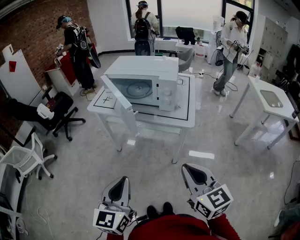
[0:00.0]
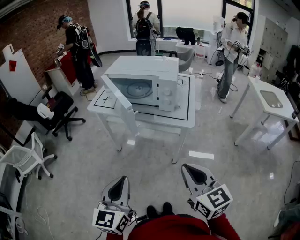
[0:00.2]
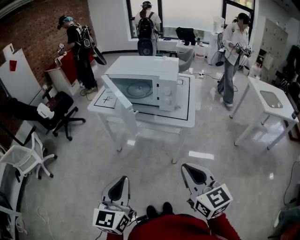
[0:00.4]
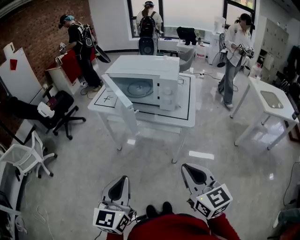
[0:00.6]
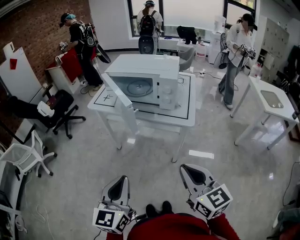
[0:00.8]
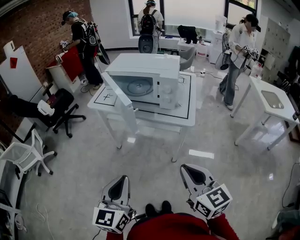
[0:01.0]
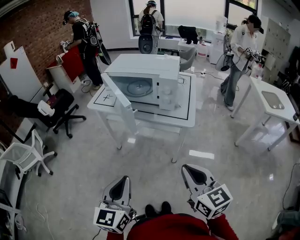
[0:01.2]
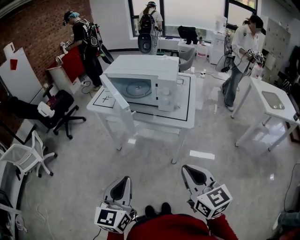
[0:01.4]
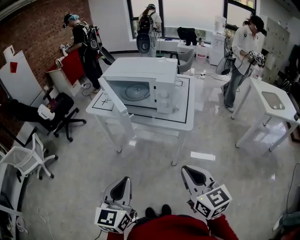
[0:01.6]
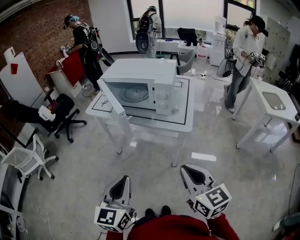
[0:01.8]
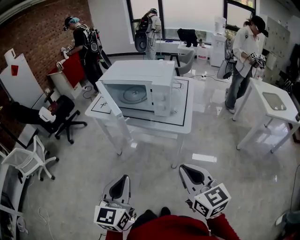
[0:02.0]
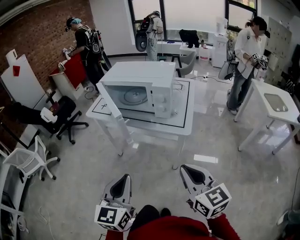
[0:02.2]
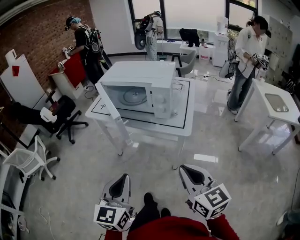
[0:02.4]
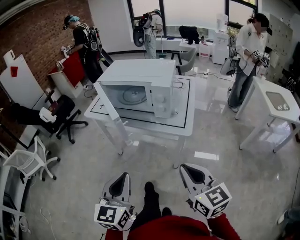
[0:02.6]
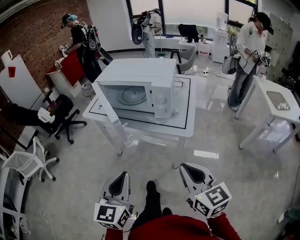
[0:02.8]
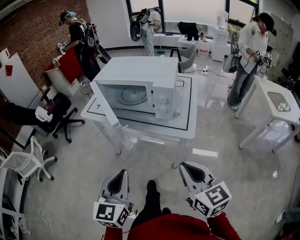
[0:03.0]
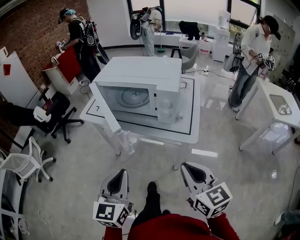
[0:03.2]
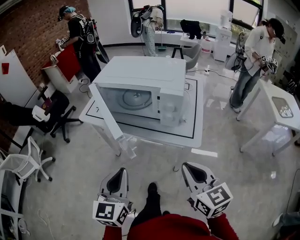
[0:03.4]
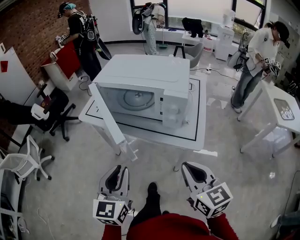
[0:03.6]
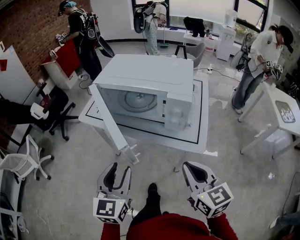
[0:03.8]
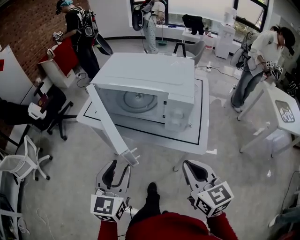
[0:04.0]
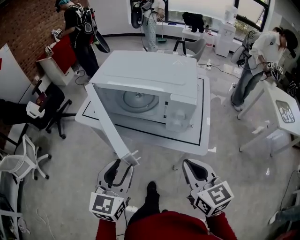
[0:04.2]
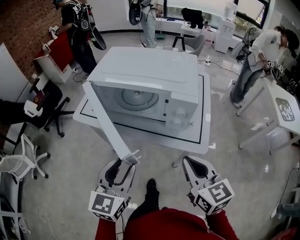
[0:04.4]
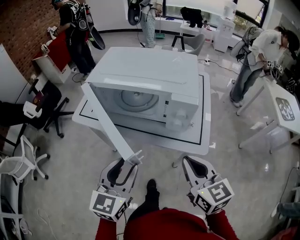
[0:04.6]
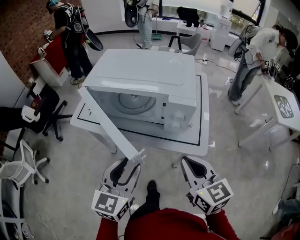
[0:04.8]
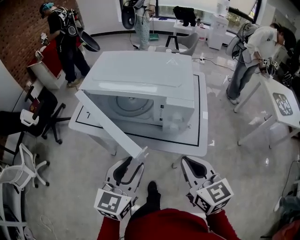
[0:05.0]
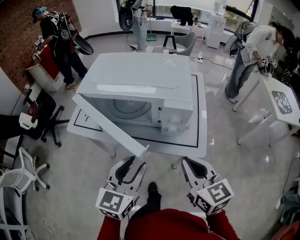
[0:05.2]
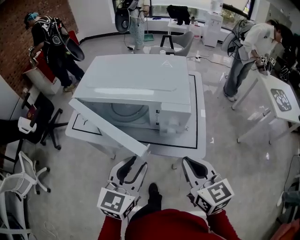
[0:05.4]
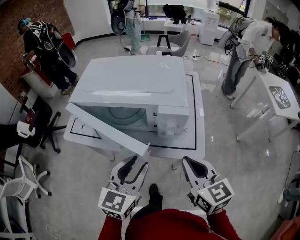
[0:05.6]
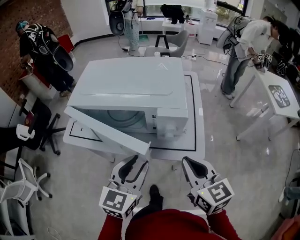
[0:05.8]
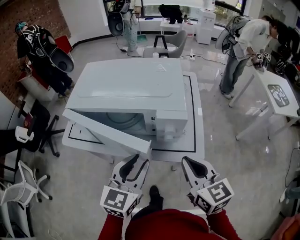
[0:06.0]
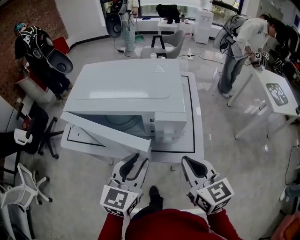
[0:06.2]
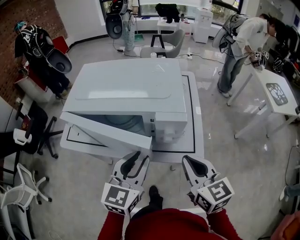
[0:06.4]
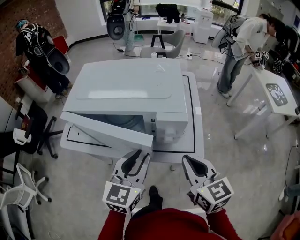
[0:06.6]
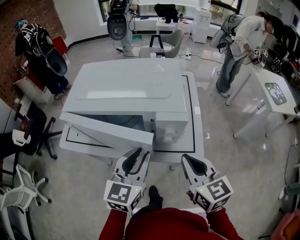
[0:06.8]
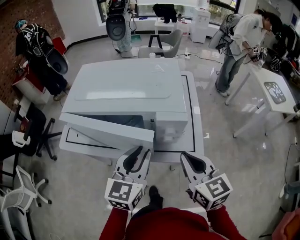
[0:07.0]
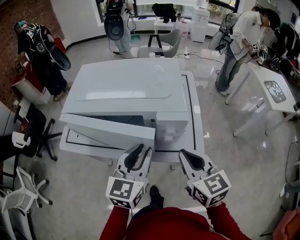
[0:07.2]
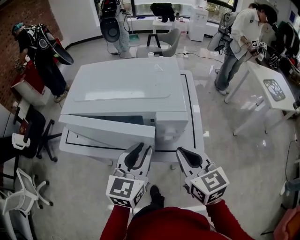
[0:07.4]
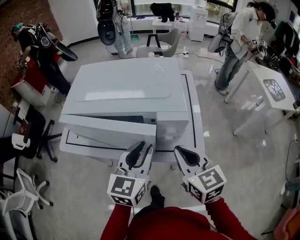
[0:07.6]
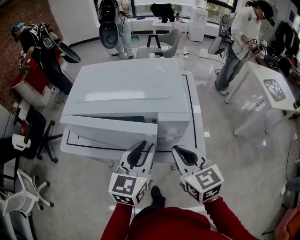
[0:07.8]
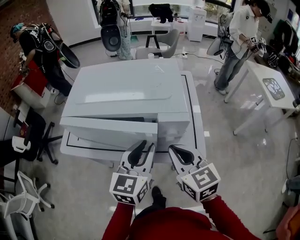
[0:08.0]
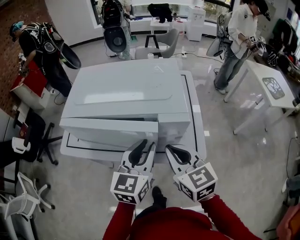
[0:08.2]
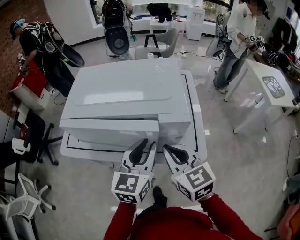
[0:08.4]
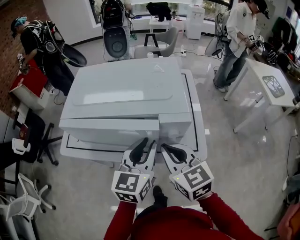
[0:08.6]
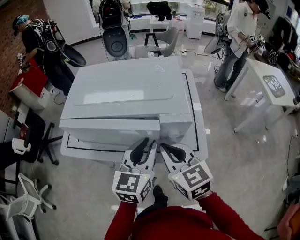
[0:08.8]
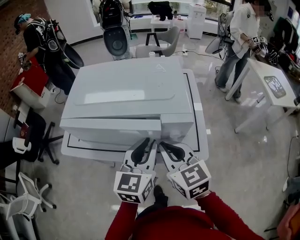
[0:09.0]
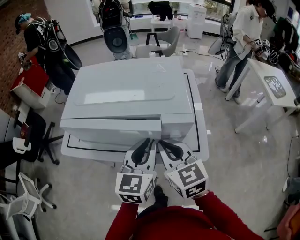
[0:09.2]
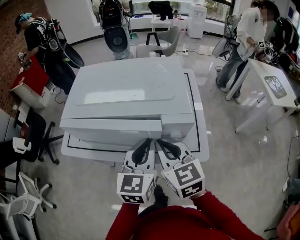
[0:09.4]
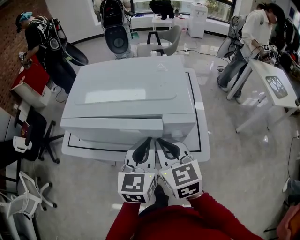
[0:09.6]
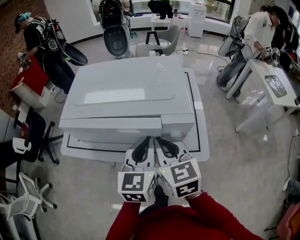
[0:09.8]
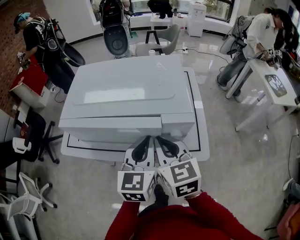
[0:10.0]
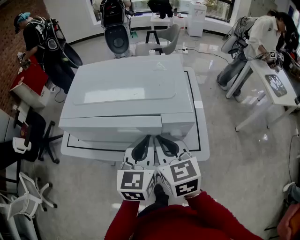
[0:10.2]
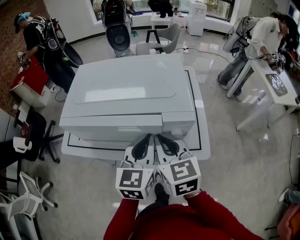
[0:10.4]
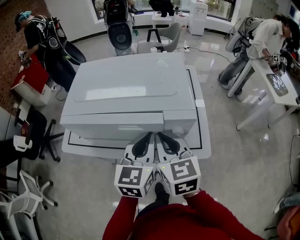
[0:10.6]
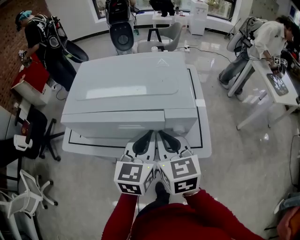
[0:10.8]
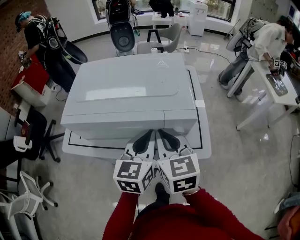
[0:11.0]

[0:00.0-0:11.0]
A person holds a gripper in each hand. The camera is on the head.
0.0 to 1.6 s: The grippers move only a little.
1.6 to 3.2 s: Both grippers travel together forward, roughly 10 cm.
3.2 to 4.8 s: The grippers both shift forward by about 10 cm. The left gripper opens its fingers.
4.8 to 6.2 s: The right gripper moves roughly 5 cm. Meanwhile the left gripper heads forward and to the right, covering some 10 cm.
6.2 to 7.8 s: The right gripper moves roughly 5 cm.
7.8 to 9.4 s: The right gripper is displaced to the left by approximately 5 cm.
9.4 to 11.0 s: The grippers stay close to where they were, moving slightly.

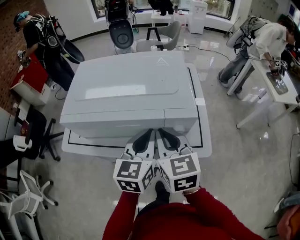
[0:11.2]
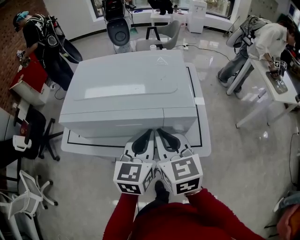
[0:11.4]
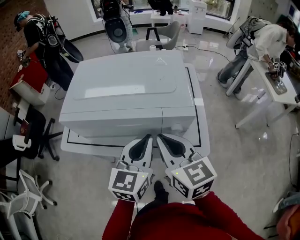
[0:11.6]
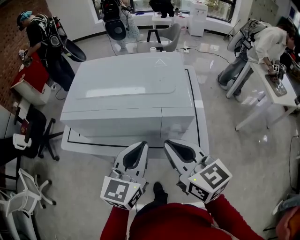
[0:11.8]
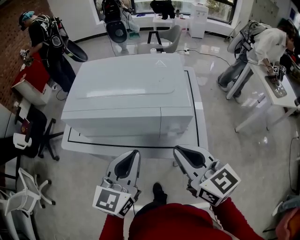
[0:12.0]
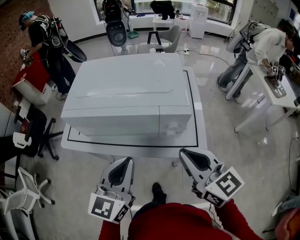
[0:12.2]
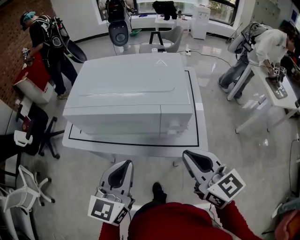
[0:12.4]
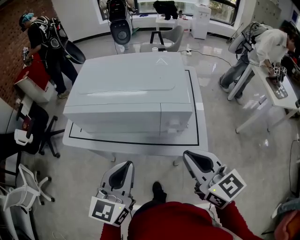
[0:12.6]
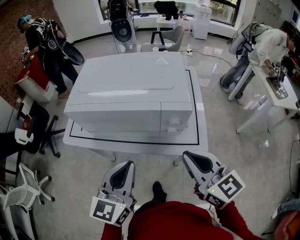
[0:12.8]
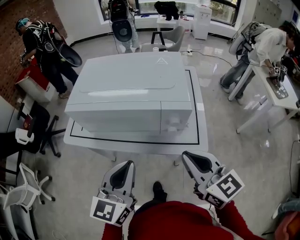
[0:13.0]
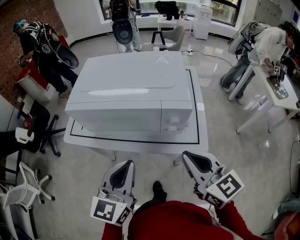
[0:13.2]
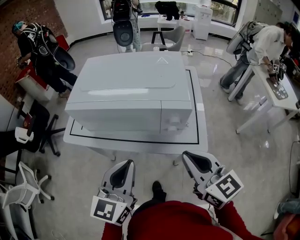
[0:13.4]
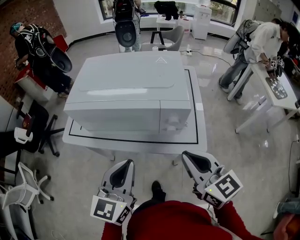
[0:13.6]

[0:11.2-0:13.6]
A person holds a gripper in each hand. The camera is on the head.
11.2 to 12.4 s: The right gripper goes roughly 10 cm backward and to the right, and changes its angle by some 20 degrees. Meanwhile the left gripper is displaced backward and to the left by some 15 cm.
12.4 to 13.6 s: The grippers make only small movements.

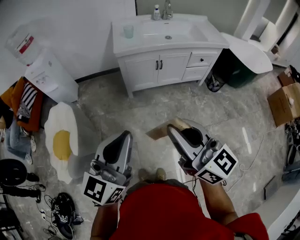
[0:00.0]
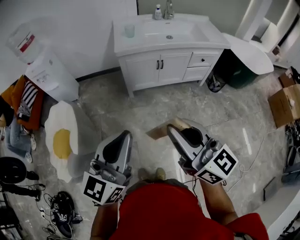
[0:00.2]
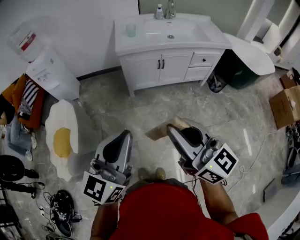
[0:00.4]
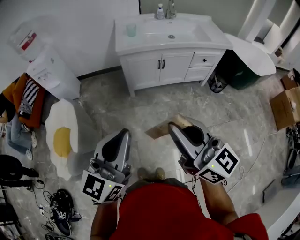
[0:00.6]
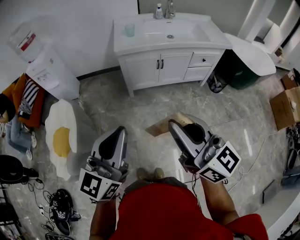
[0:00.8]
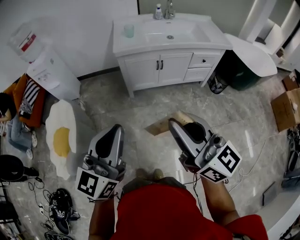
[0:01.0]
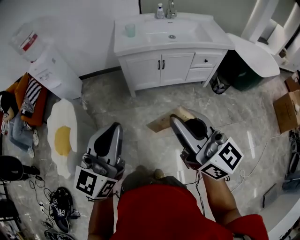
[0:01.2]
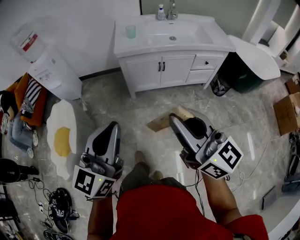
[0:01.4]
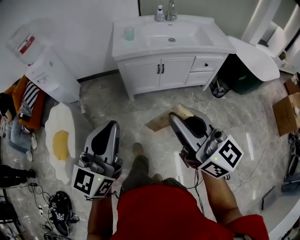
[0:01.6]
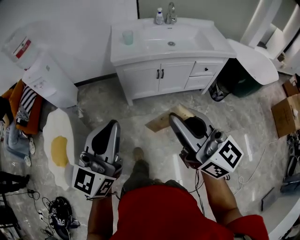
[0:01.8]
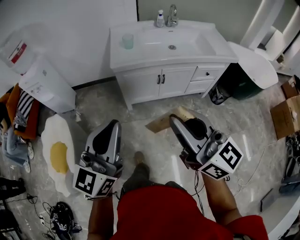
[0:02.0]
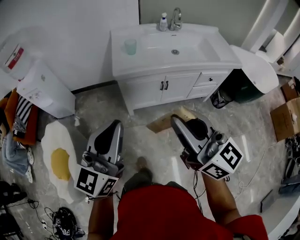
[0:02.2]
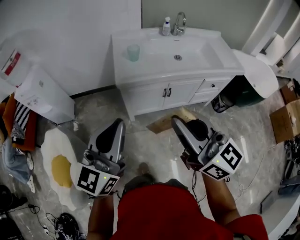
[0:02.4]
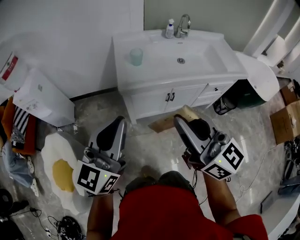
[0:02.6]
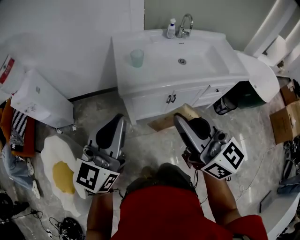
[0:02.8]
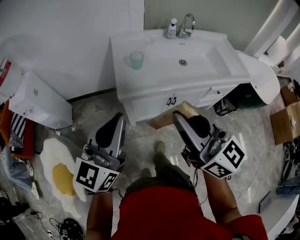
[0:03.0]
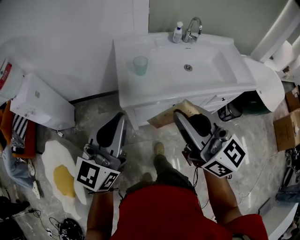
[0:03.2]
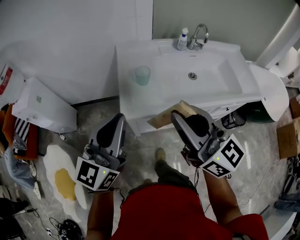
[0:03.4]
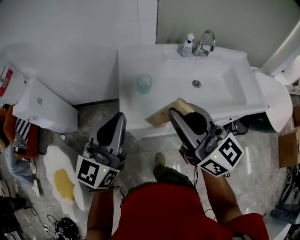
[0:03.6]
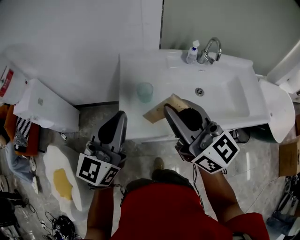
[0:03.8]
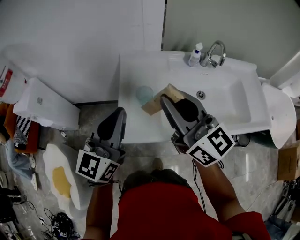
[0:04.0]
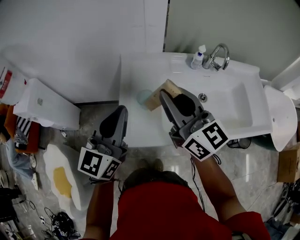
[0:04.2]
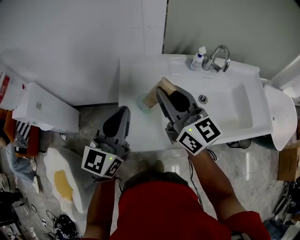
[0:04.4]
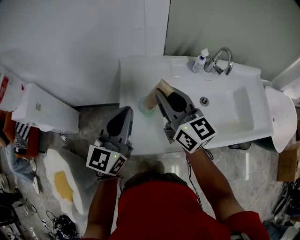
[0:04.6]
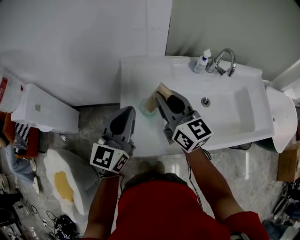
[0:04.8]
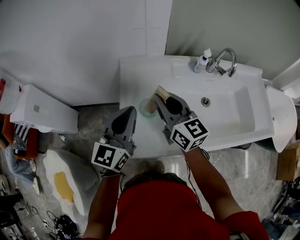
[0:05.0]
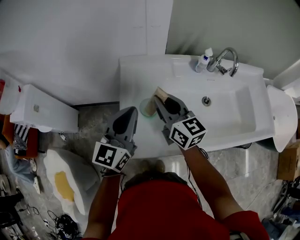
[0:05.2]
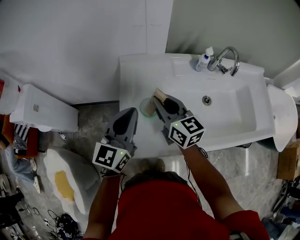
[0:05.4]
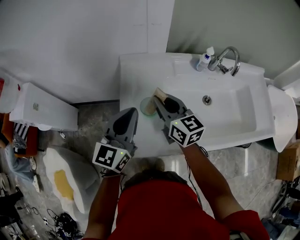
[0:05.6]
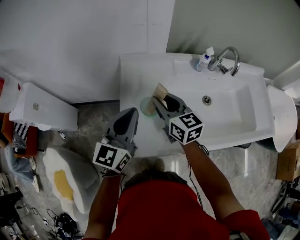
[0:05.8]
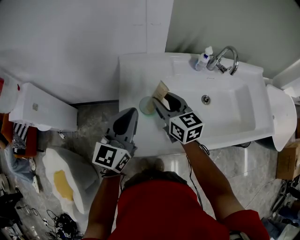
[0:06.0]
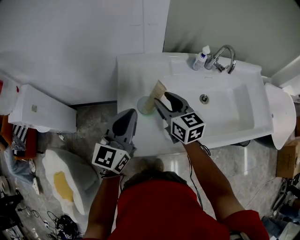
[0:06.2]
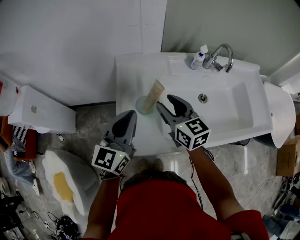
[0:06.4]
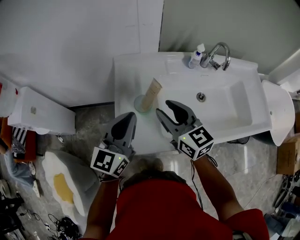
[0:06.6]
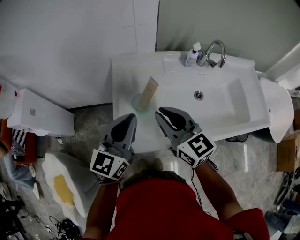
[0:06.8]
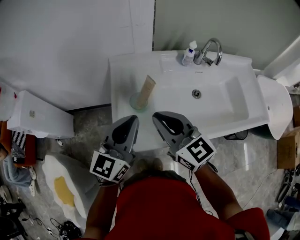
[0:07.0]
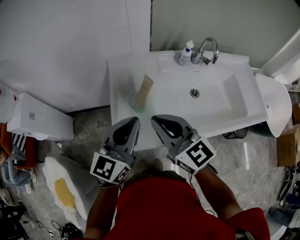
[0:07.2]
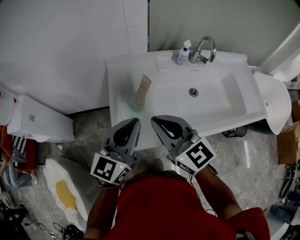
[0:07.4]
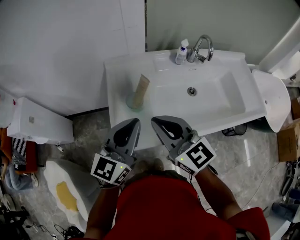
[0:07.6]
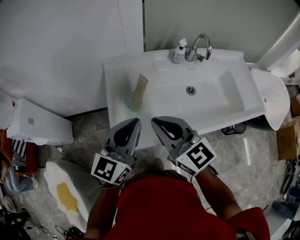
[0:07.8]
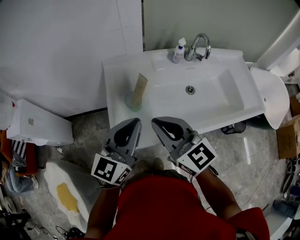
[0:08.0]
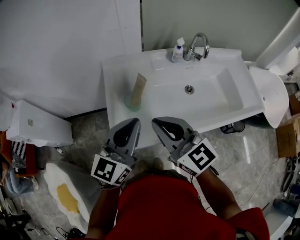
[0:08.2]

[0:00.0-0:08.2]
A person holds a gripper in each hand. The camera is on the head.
0.0 to 1.6 s: The left gripper is displaced forward by about 10 cm. Meanwhile the right gripper moves forward and to the right, approximately 10 cm.
1.6 to 3.2 s: The pair of grippers is taken forward, roughly 40 cm.
3.2 to 5.0 s: The two grippers go roughly 35 cm forward.
5.0 to 6.6 s: The right gripper goes roughly 5 cm backward, and opens.
6.6 to 8.2 s: The right gripper is displaced backward and upward by approximately 10 cm, and closes; the left gripper is displaced backward by about 5 cm.

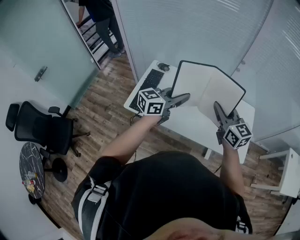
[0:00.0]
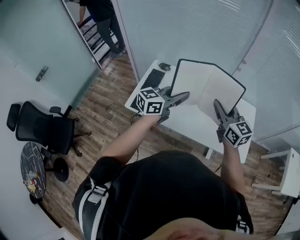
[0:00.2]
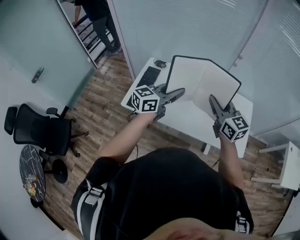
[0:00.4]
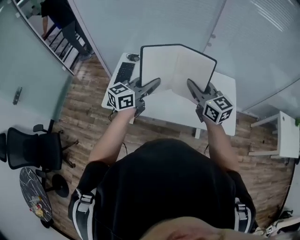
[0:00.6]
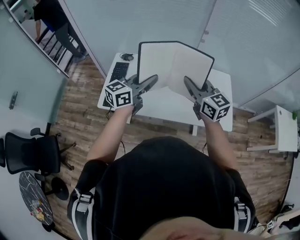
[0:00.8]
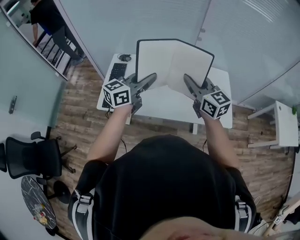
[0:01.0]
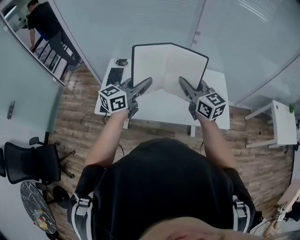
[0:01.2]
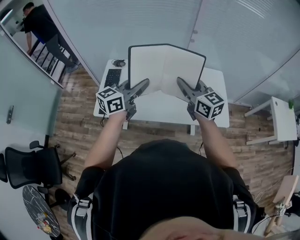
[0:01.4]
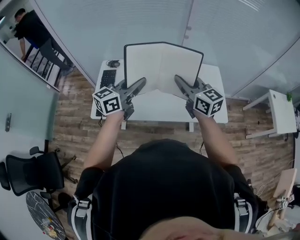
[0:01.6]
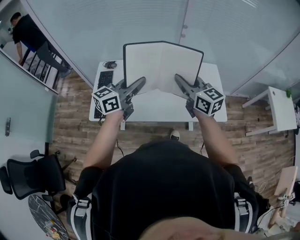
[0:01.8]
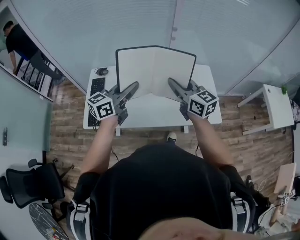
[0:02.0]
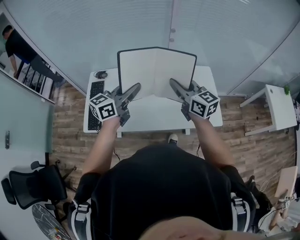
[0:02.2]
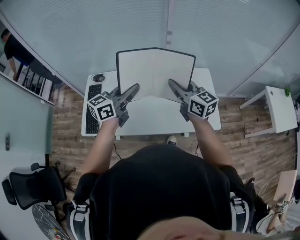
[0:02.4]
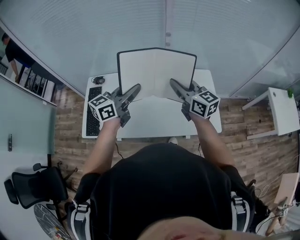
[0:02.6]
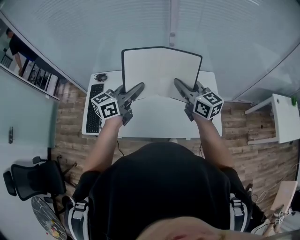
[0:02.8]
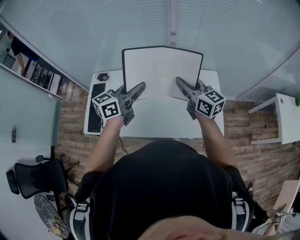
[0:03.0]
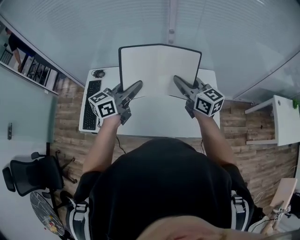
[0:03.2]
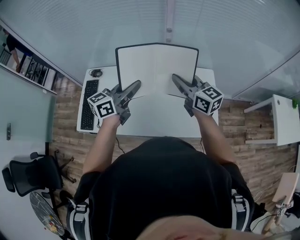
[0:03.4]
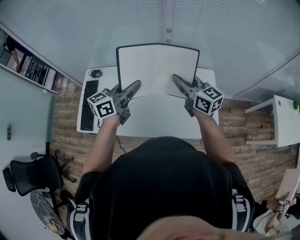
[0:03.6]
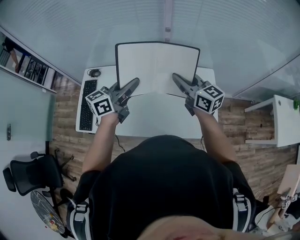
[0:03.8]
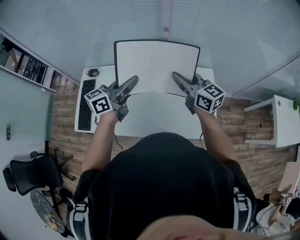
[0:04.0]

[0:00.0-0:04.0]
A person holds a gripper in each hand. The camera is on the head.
0.0 to 1.4 s: The grippers move only a little.
1.4 to 2.6 s: The two grippers go some 20 cm forward and to the right.
2.6 to 4.0 s: Both grippers travel together forward and to the right, about 15 cm.
